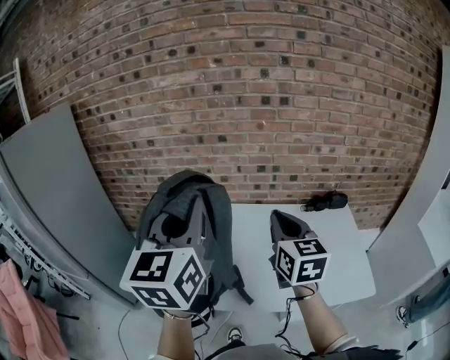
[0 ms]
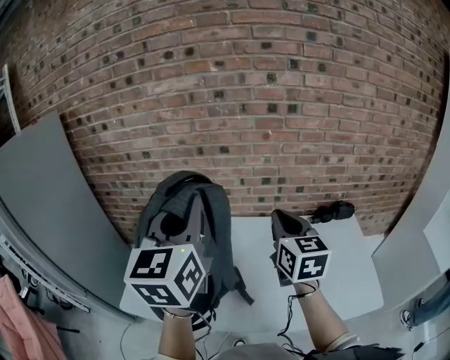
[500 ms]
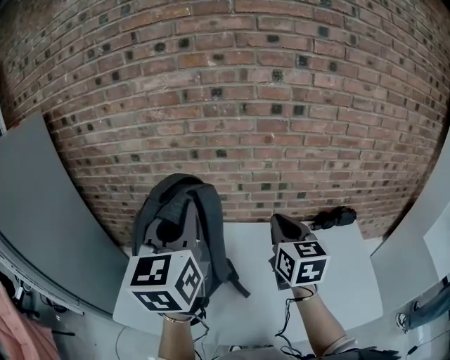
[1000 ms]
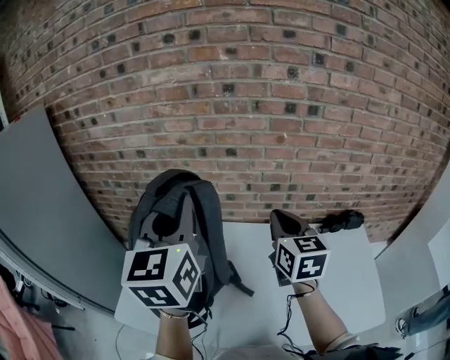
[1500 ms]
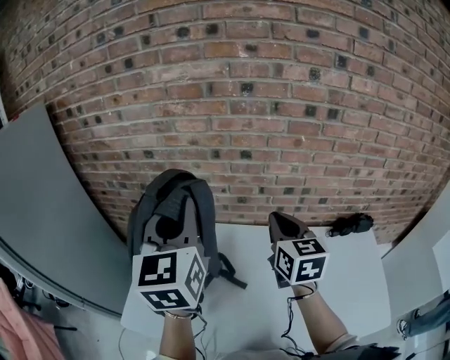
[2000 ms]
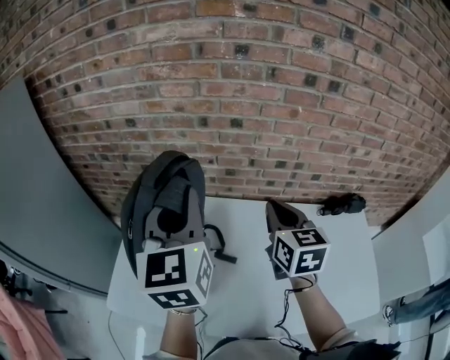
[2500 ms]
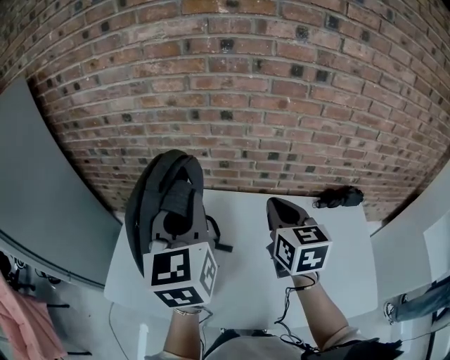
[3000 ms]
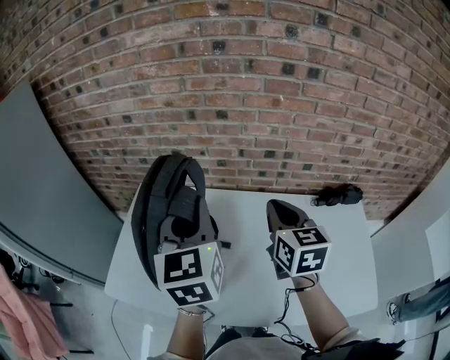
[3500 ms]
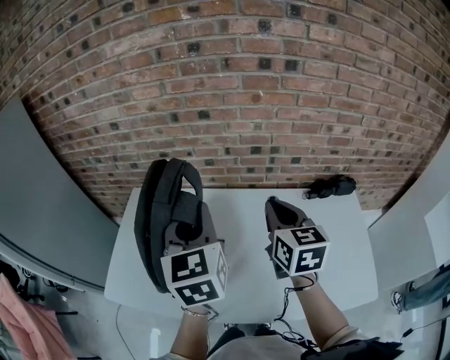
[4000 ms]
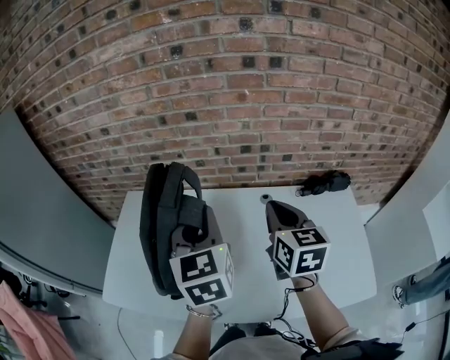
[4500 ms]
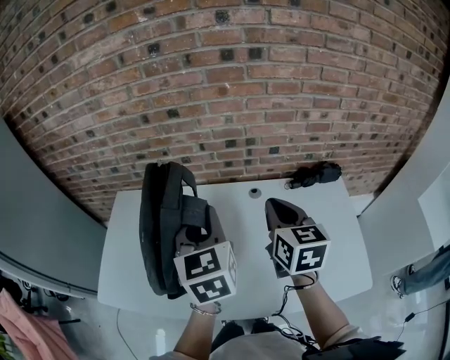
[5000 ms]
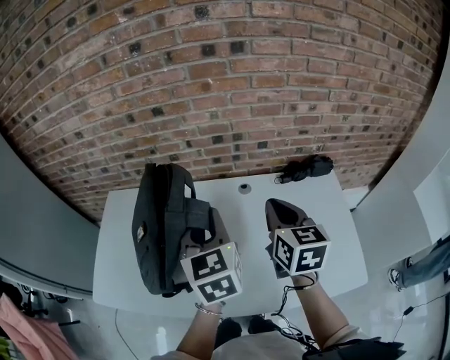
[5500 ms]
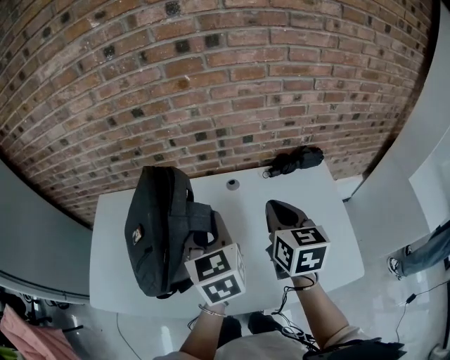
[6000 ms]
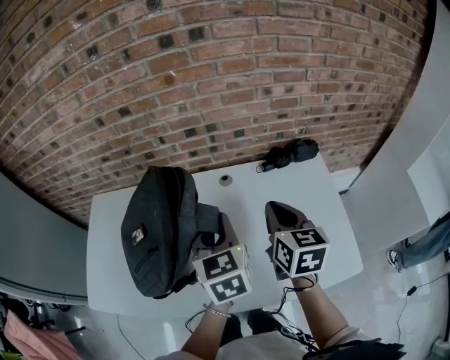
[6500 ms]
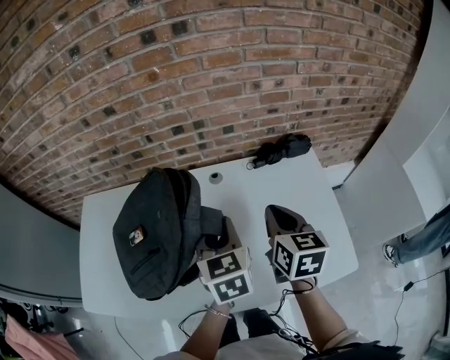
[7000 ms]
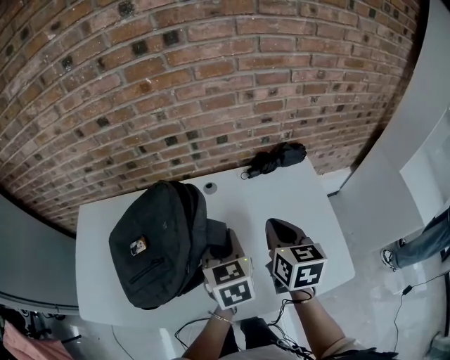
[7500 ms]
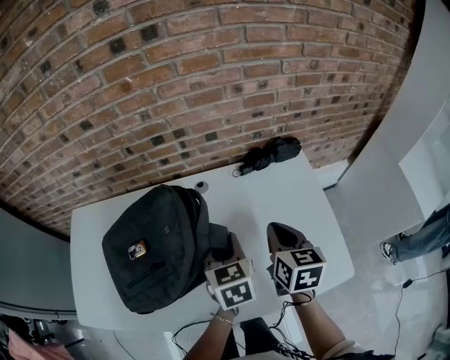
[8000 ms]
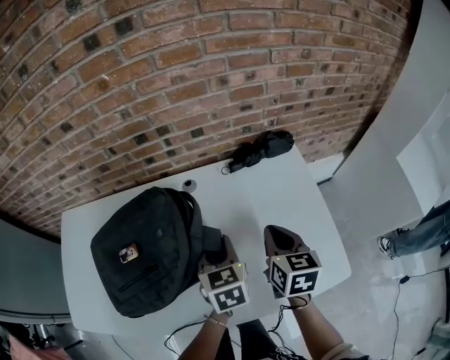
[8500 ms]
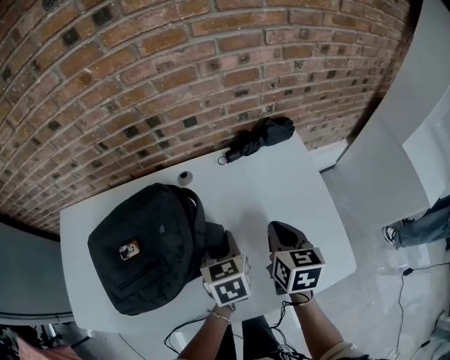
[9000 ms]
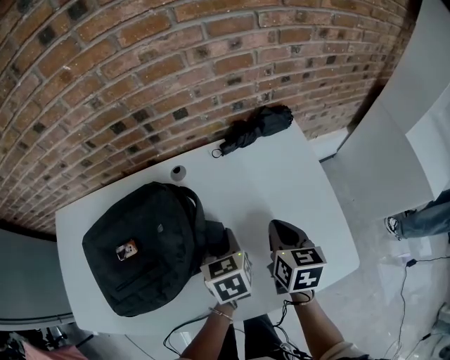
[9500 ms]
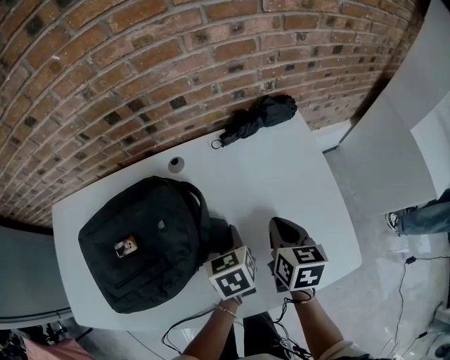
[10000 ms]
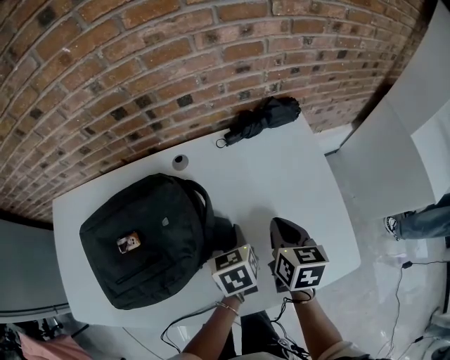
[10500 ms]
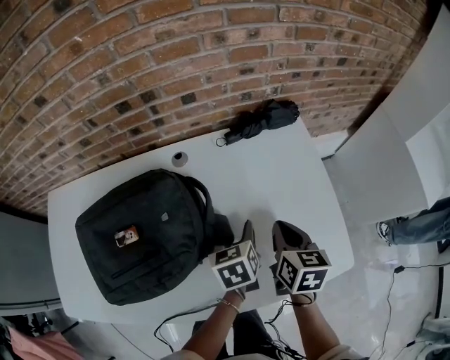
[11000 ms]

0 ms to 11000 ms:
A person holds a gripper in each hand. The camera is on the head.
0 ms to 2000 ms: The left gripper travels forward and to the left by about 25 cm; the right gripper heads forward, covering roughly 25 cm.
2000 ms to 3500 ms: The left gripper heads to the right, downward and backward, covering about 15 cm. The right gripper travels backward and to the right by roughly 10 cm.
3500 ms to 5500 ms: The right gripper is displaced to the right by roughly 15 cm. Meanwhile the left gripper moves to the right and downward, about 20 cm.
5500 ms to 7500 ms: The grippers both shift to the right and downward by approximately 15 cm.
7500 ms to 9000 ms: Both grippers travel together downward and to the right, roughly 15 cm.
9000 ms to 11000 ms: The left gripper moves downward, approximately 5 cm, and opens.

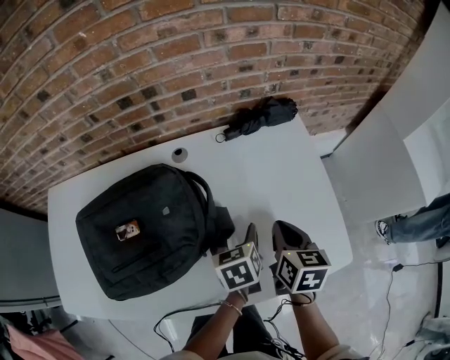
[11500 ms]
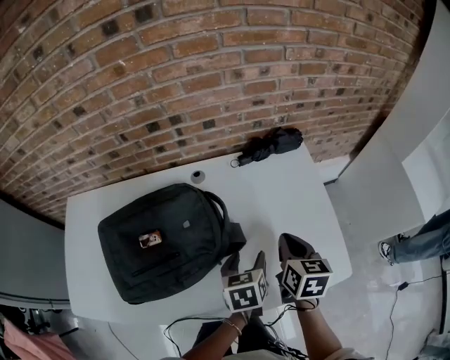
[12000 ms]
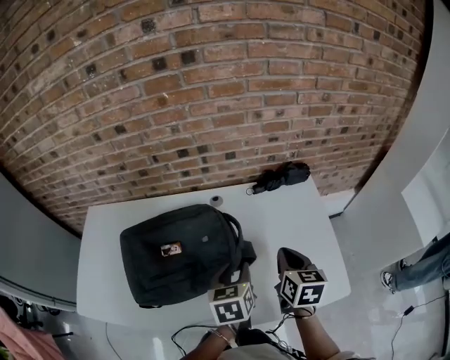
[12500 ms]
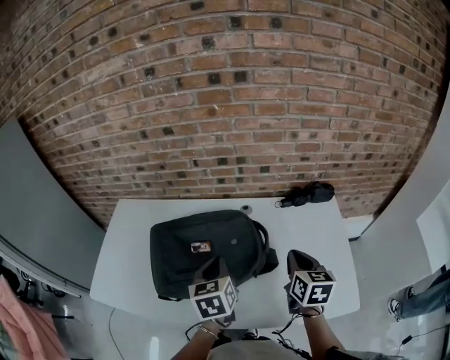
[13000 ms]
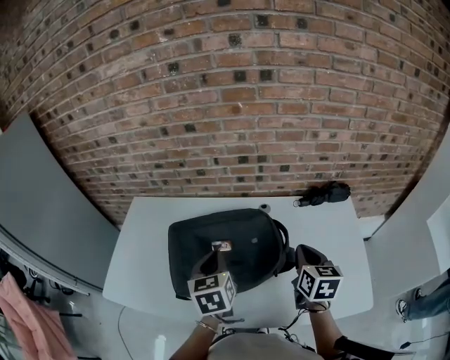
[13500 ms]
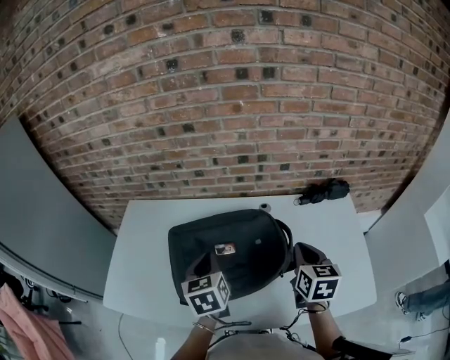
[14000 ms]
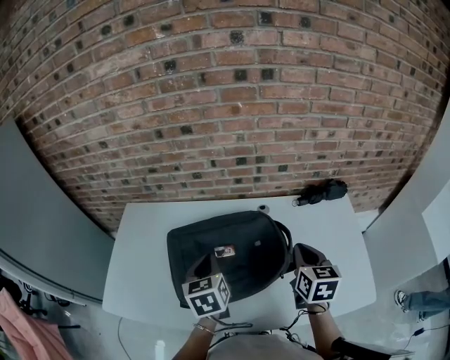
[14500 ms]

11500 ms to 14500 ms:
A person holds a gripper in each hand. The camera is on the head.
11500 ms to 13000 ms: The right gripper moves upward and to the left, about 15 cm. The left gripper moves to the left and upward, approximately 30 cm, changes its angle by roughly 20 degrees, and closes.
13000 ms to 14500 ms: The left gripper shifts approximately 10 cm to the left, while the right gripper goes some 5 cm to the left.

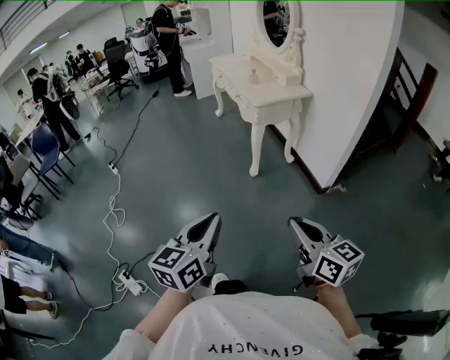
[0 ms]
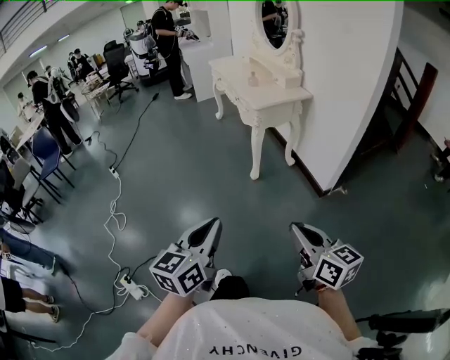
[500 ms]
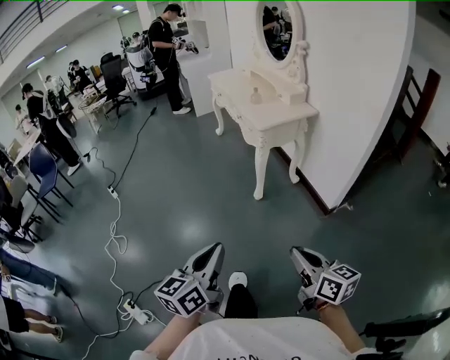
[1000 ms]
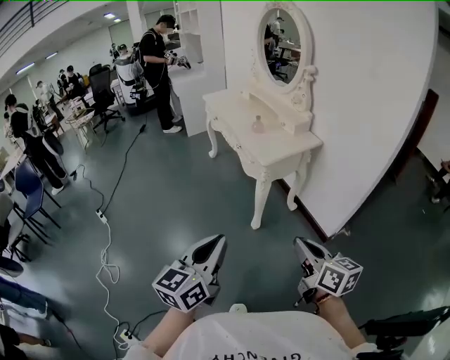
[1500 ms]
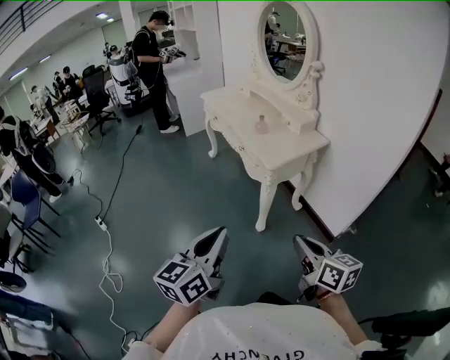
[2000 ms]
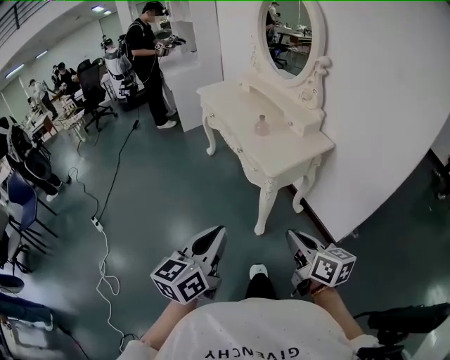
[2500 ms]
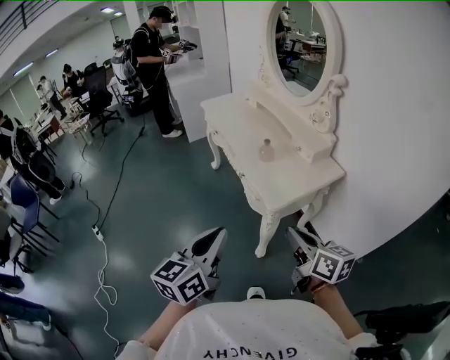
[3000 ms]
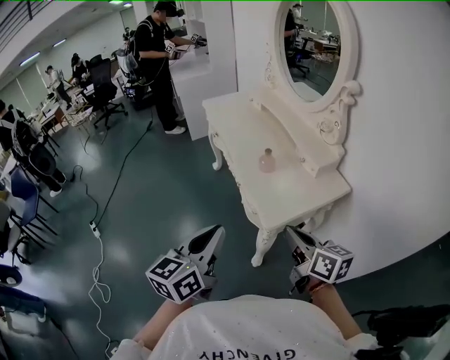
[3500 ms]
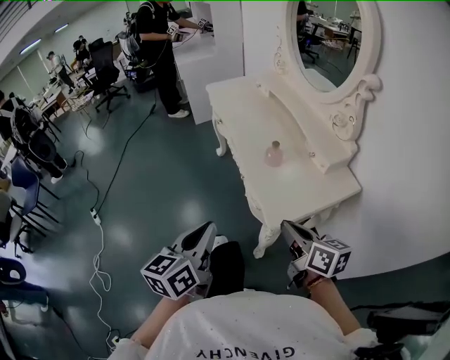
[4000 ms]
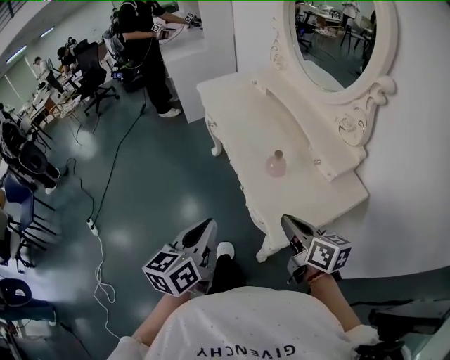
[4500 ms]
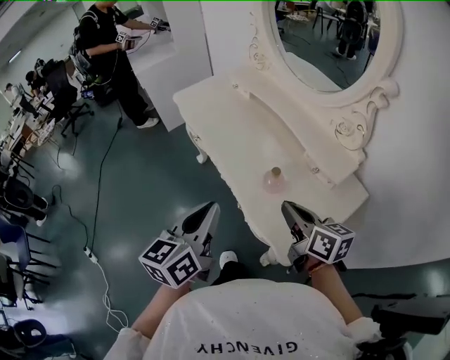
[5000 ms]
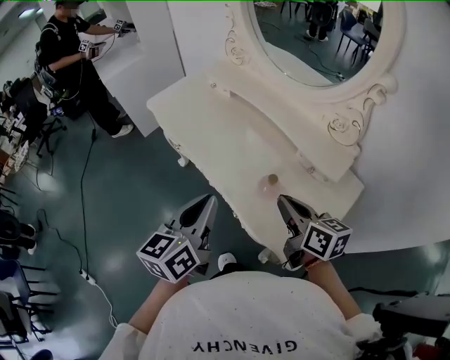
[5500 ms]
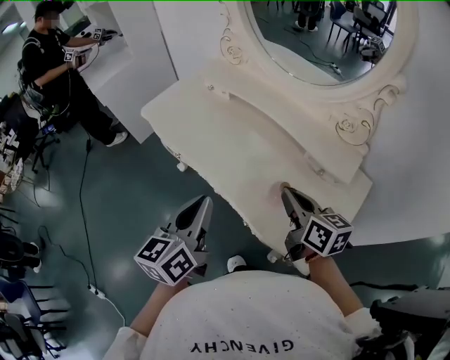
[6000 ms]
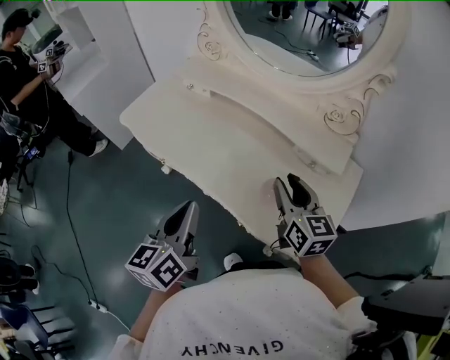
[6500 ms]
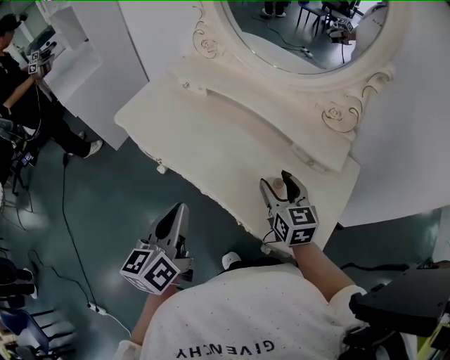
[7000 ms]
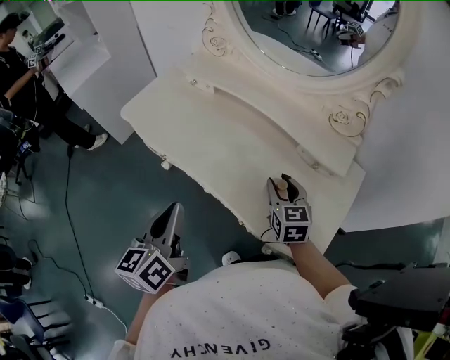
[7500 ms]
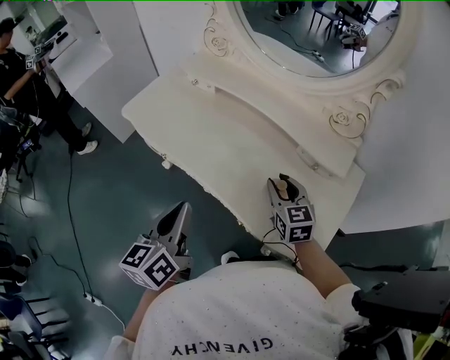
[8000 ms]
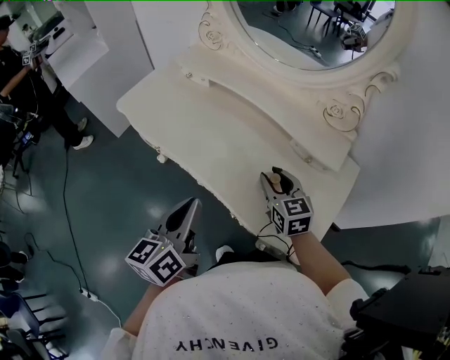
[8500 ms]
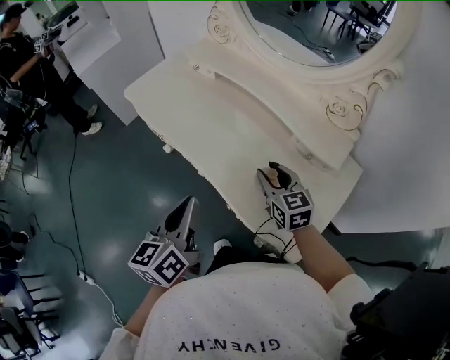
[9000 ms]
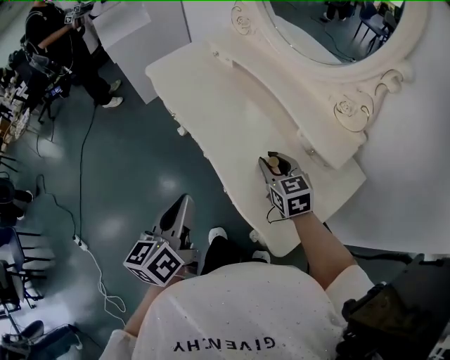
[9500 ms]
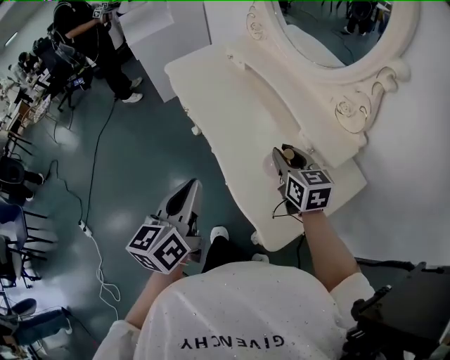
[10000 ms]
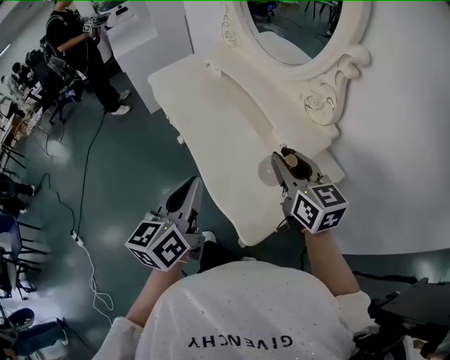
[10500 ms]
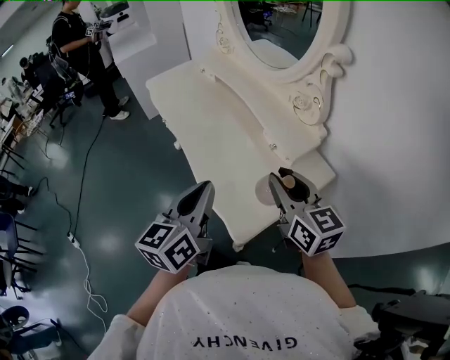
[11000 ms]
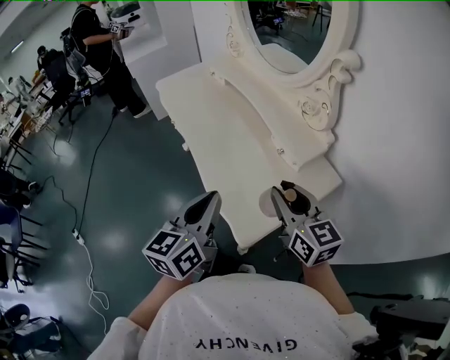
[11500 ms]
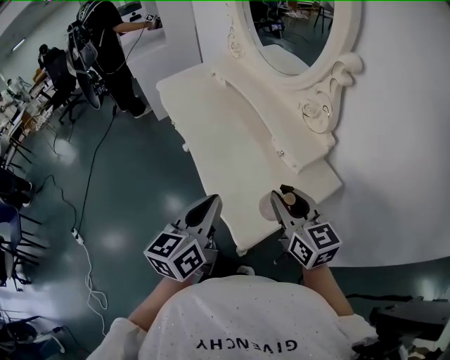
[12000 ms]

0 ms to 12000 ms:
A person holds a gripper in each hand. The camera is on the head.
0 ms to 2000 ms: Both grippers travel together forward, some 40 cm.
2000 ms to 4000 ms: Both grippers move forward, roughly 40 cm.
4000 ms to 6000 ms: The left gripper changes place by some 40 cm, and changes its angle by about 20 degrees; the right gripper shifts by some 30 cm, and changes its angle by some 30 degrees.
6000 ms to 8000 ms: The right gripper shifts some 10 cm downward and forward, rotates about 30 degrees, and opens up, while the left gripper changes place by about 5 cm.
8000 ms to 10000 ms: The left gripper is displaced backward and to the right by roughly 15 cm, and rotates about 20 degrees, while the right gripper goes roughly 5 cm upward, and turns by approximately 30 degrees.
10000 ms to 12000 ms: The left gripper heads to the right and backward, covering roughly 15 cm. The right gripper travels backward and to the right by about 15 cm.

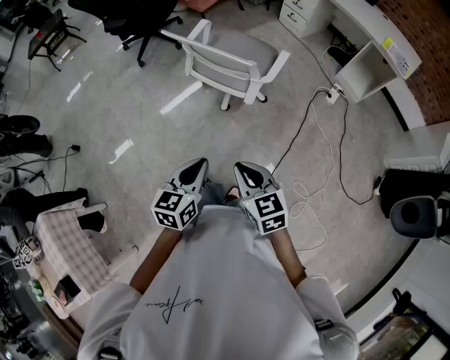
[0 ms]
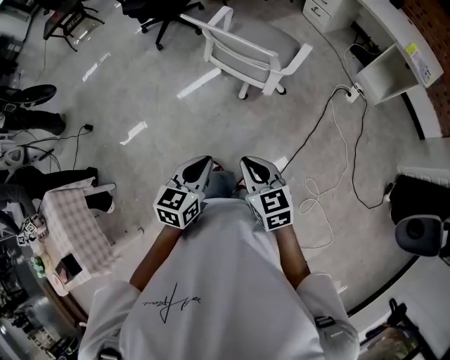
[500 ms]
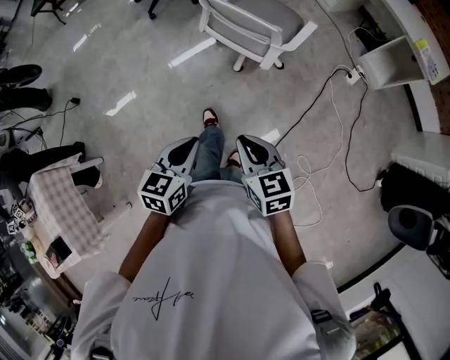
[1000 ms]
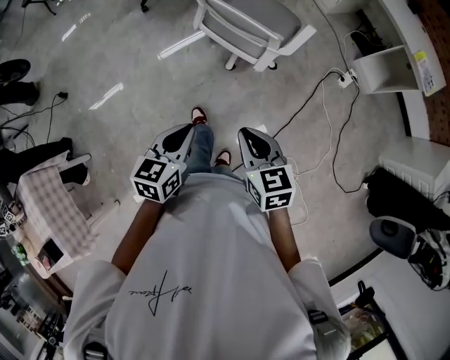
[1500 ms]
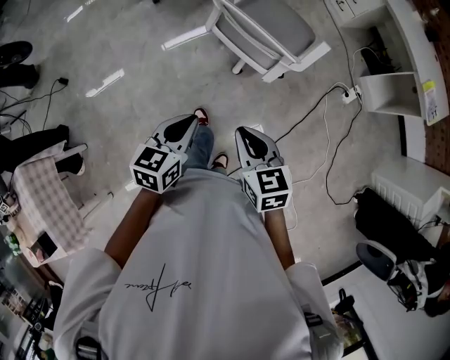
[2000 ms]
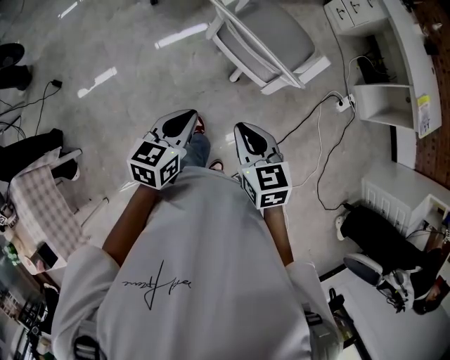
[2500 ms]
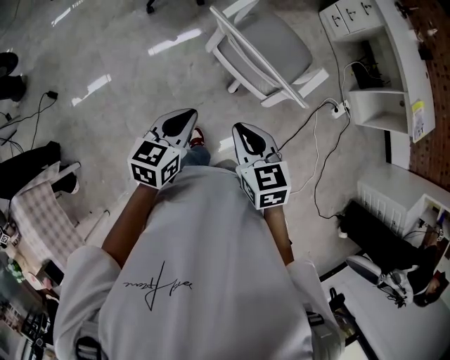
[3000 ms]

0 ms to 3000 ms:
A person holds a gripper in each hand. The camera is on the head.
0 ms to 1500 ms: The two grippers go roughly 5 cm forward.
1500 ms to 3000 ms: The grippers both shift forward and to the left by some 25 cm.
